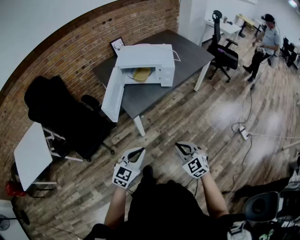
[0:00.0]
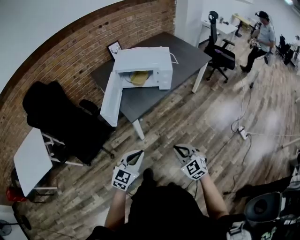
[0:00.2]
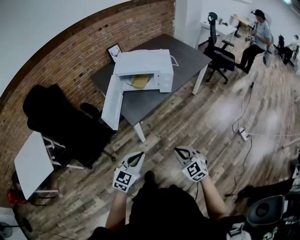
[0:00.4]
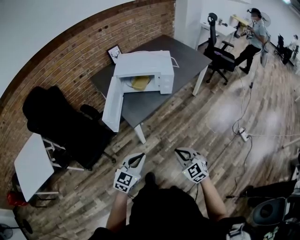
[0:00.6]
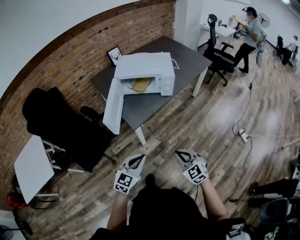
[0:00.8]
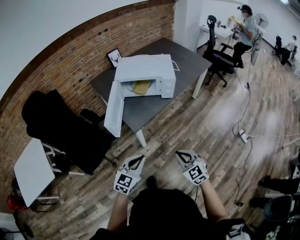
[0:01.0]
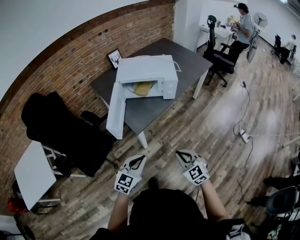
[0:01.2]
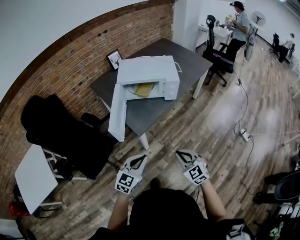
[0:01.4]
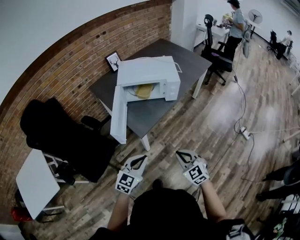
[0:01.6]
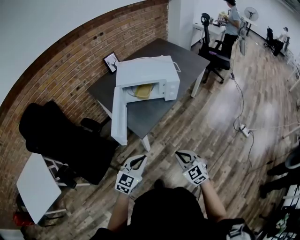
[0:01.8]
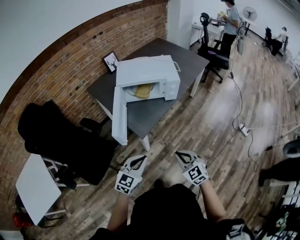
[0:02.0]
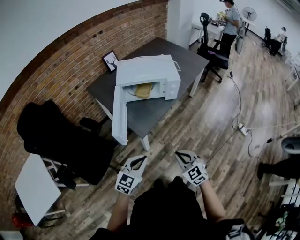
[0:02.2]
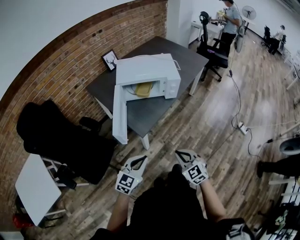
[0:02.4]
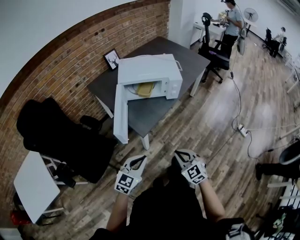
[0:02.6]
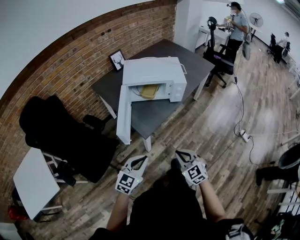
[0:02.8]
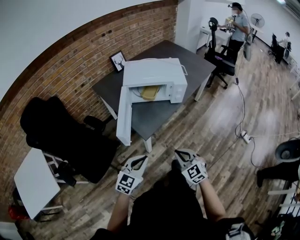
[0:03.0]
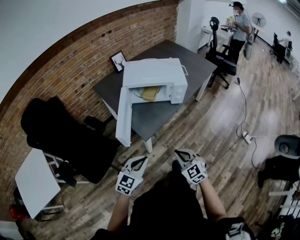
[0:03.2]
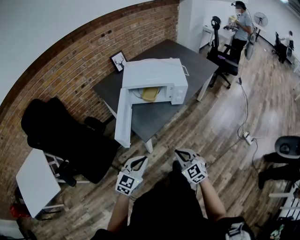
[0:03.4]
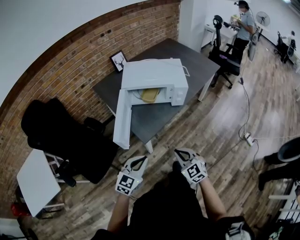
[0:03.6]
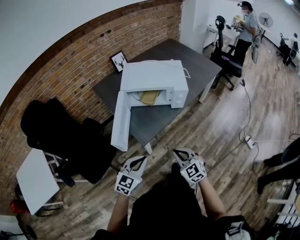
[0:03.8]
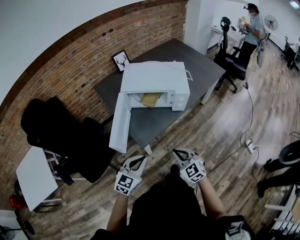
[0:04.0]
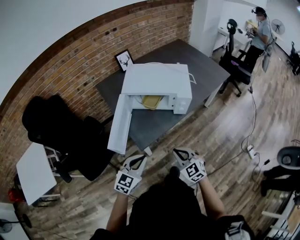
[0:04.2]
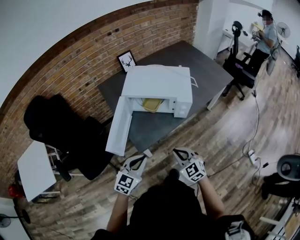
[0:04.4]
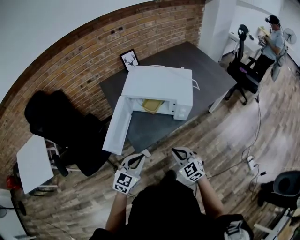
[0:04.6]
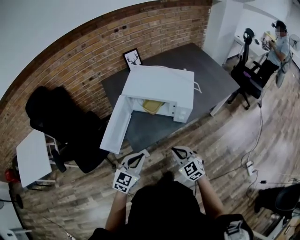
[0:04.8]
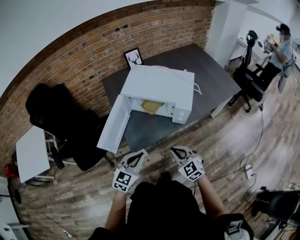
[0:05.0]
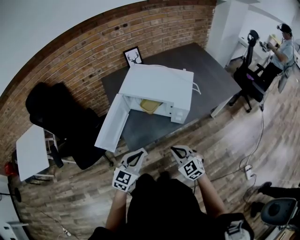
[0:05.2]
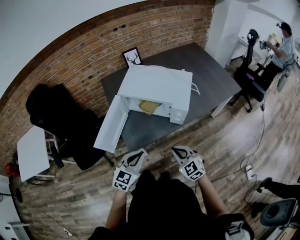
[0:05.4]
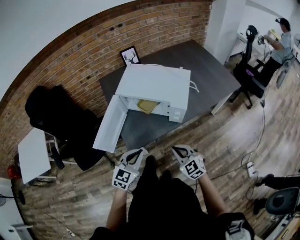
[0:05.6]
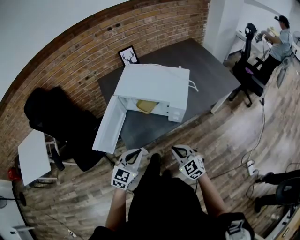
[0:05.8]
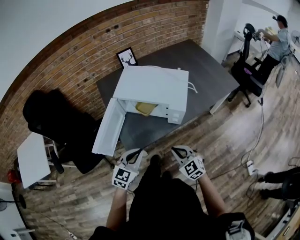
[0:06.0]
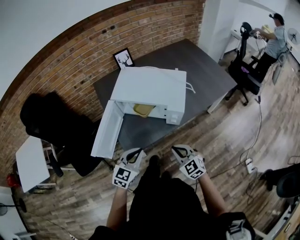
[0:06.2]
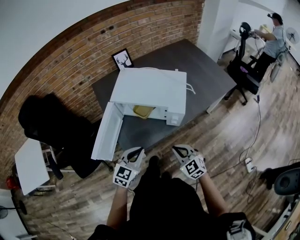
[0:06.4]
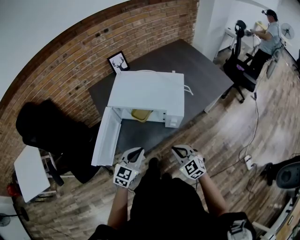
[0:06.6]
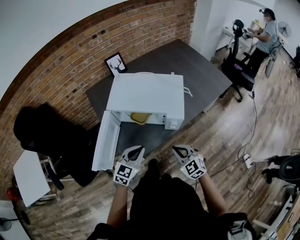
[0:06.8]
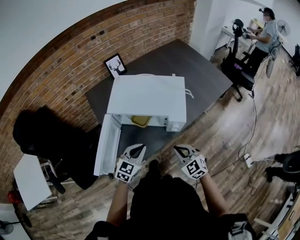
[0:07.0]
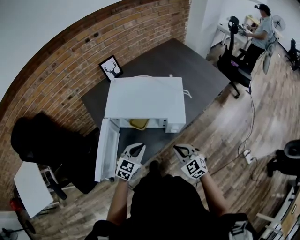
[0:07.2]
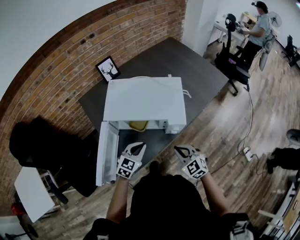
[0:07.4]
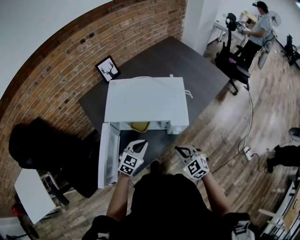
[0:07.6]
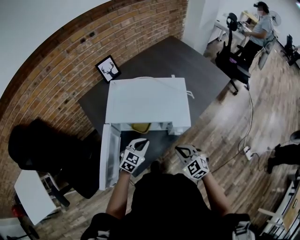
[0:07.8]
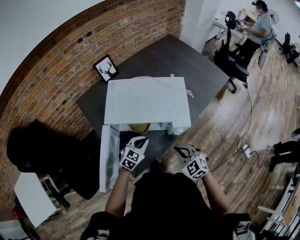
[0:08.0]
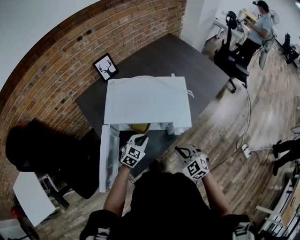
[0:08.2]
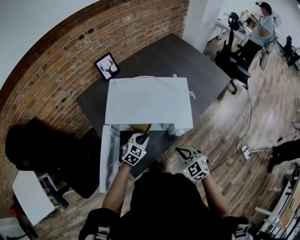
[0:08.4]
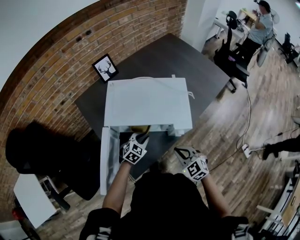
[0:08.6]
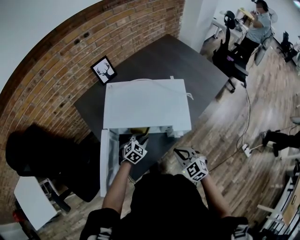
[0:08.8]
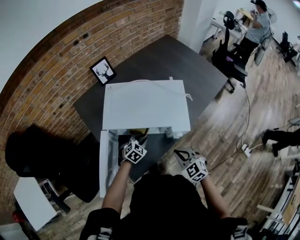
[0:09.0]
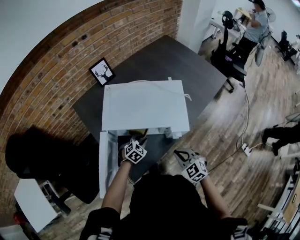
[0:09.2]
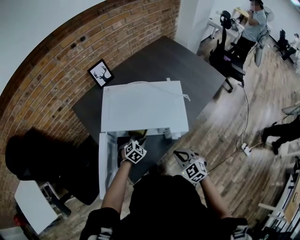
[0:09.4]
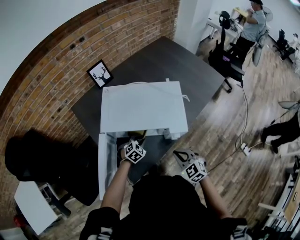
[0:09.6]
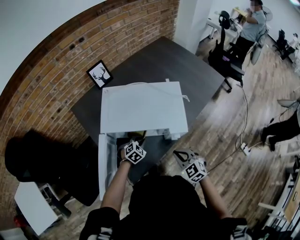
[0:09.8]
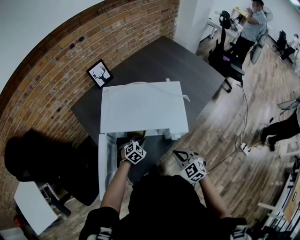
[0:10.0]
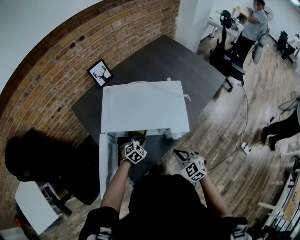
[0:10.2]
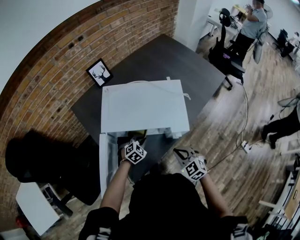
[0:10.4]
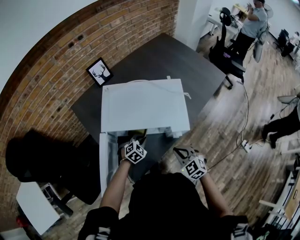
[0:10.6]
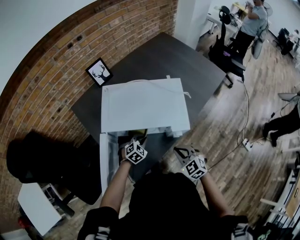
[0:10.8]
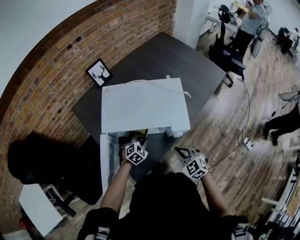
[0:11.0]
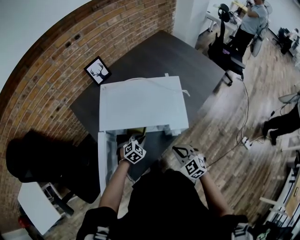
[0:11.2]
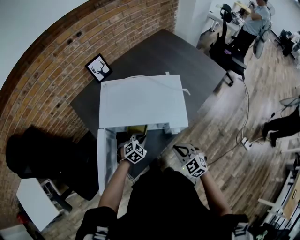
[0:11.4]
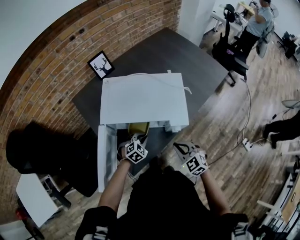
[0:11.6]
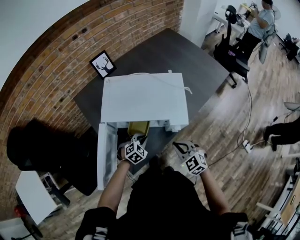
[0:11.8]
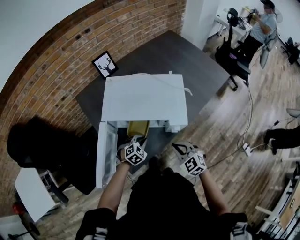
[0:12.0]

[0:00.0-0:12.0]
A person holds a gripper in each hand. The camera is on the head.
0:00.0 to 0:01.6: The grippers both shift to the left and forward by some 10 cm.
0:01.6 to 0:03.0: The right gripper changes place by roughly 5 cm.
0:03.0 to 0:04.4: The left gripper shifts some 15 cm forward and to the right; the right gripper heads forward, covering about 15 cm.
0:04.4 to 0:06.0: Both grippers travel together to the right and forward, about 10 cm.
0:06.0 to 0:07.6: The right gripper heads forward, covering approximately 10 cm. The left gripper moves forward and downward, roughly 20 cm.
0:07.6 to 0:09.0: The left gripper moves downward and forward, about 15 cm, and swivels roughly 20 degrees.
0:09.0 to 0:10.4: The grippers move only a little.
0:10.4 to 0:12.0: The left gripper heads backward, covering approximately 5 cm.

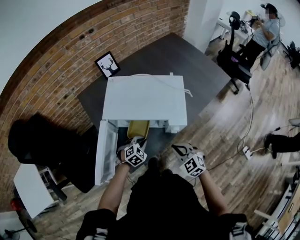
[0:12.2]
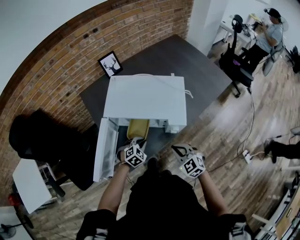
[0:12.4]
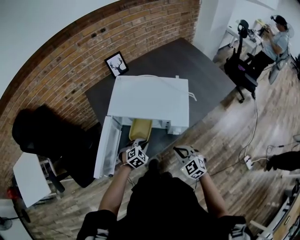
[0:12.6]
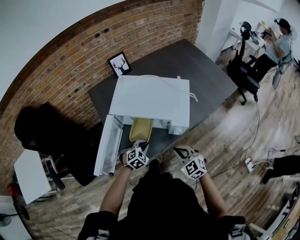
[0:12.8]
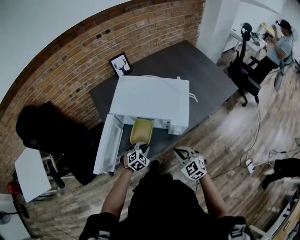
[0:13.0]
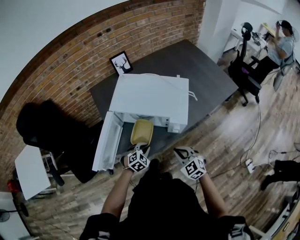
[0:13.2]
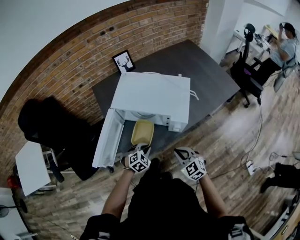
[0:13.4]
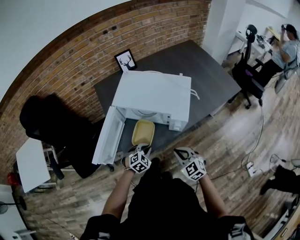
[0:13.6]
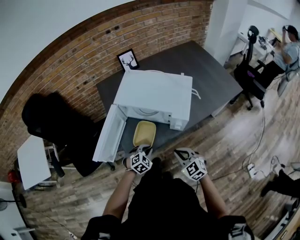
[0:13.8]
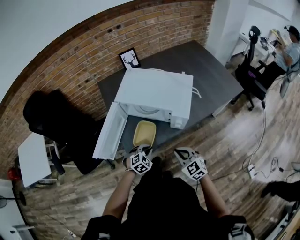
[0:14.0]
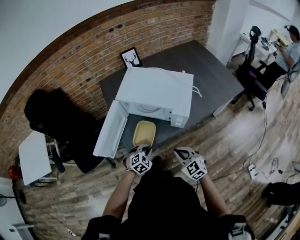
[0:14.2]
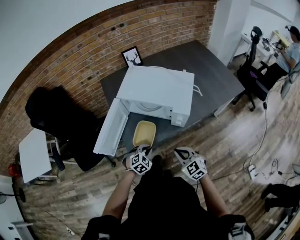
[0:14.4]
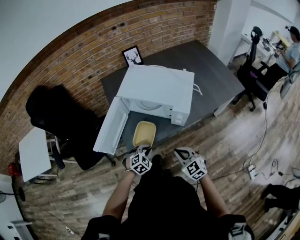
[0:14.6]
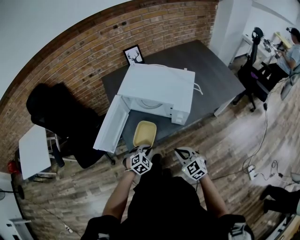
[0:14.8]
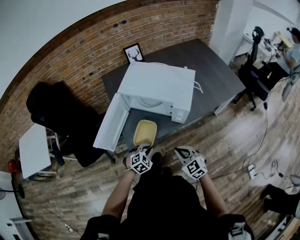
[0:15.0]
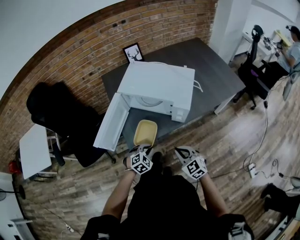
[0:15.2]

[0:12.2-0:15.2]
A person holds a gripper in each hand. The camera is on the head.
0:12.2 to 0:13.8: The left gripper shifts roughly 10 cm backward; the right gripper travels backward by roughly 5 cm.
0:13.8 to 0:15.2: The left gripper goes about 5 cm backward.

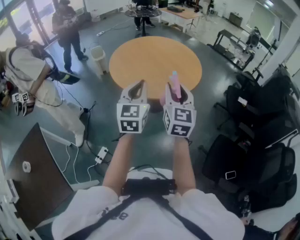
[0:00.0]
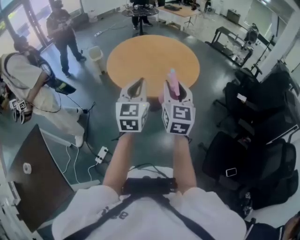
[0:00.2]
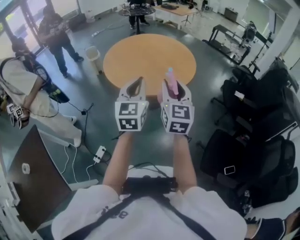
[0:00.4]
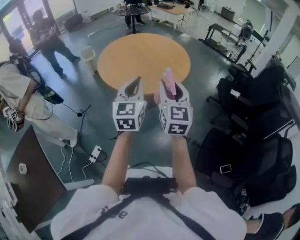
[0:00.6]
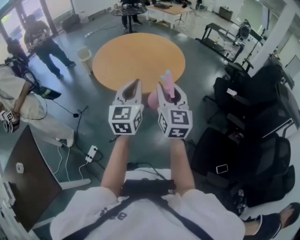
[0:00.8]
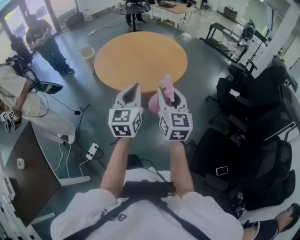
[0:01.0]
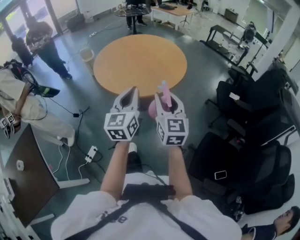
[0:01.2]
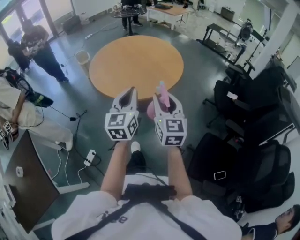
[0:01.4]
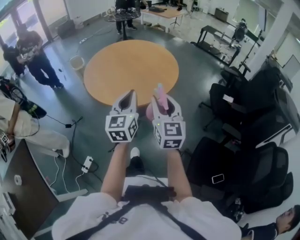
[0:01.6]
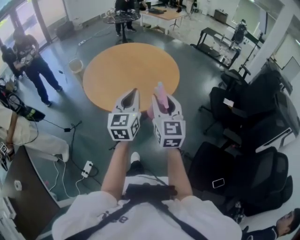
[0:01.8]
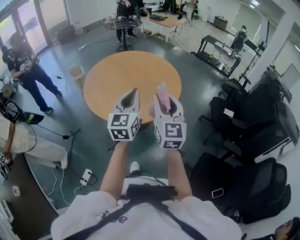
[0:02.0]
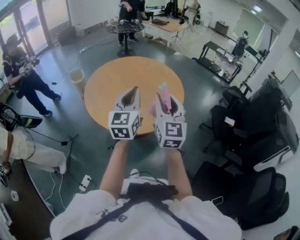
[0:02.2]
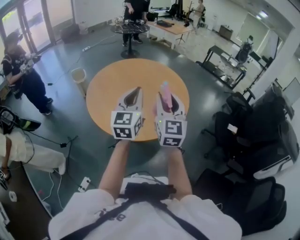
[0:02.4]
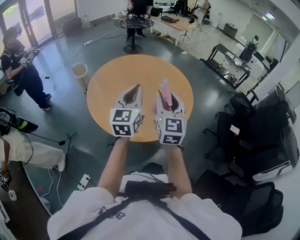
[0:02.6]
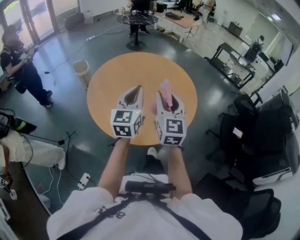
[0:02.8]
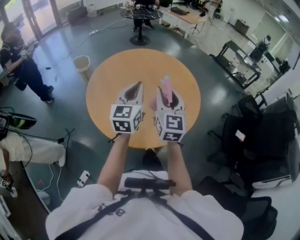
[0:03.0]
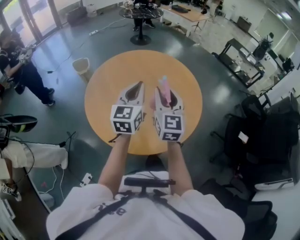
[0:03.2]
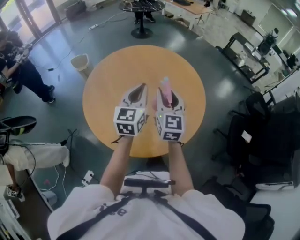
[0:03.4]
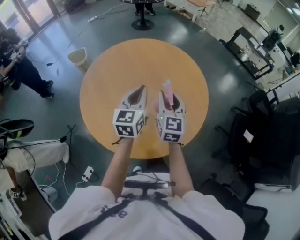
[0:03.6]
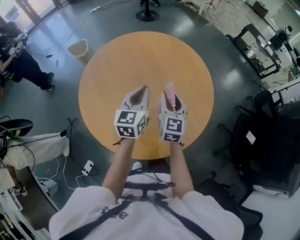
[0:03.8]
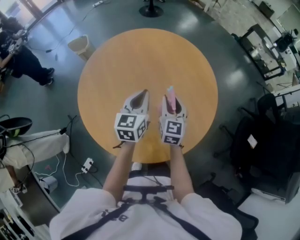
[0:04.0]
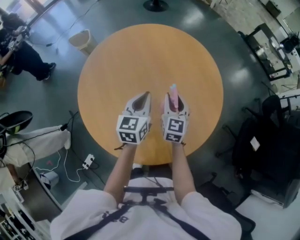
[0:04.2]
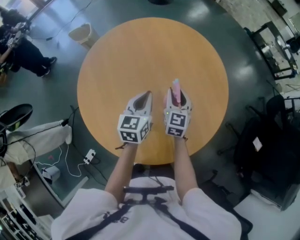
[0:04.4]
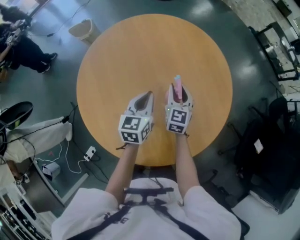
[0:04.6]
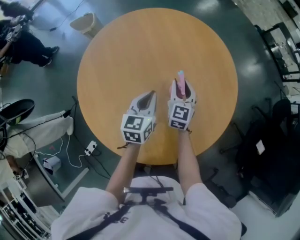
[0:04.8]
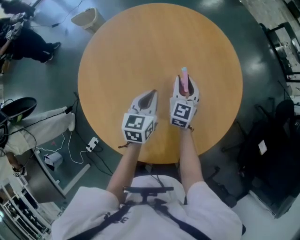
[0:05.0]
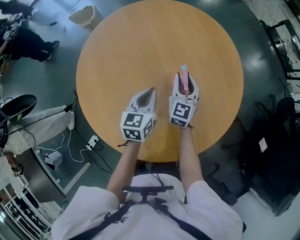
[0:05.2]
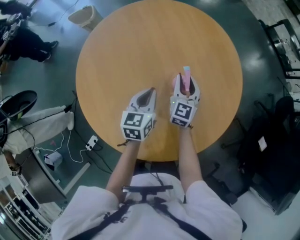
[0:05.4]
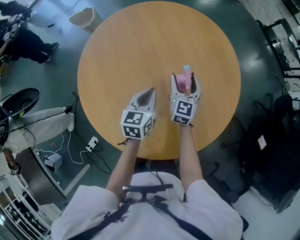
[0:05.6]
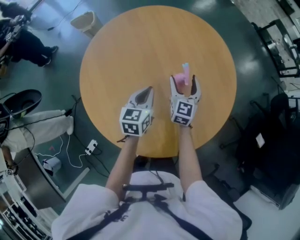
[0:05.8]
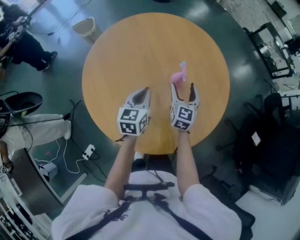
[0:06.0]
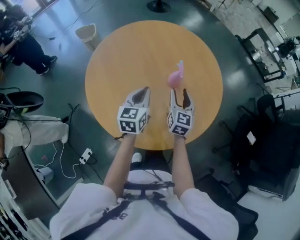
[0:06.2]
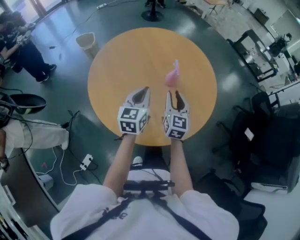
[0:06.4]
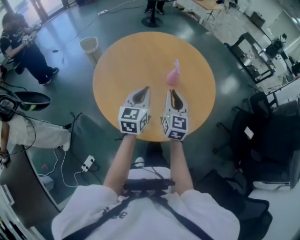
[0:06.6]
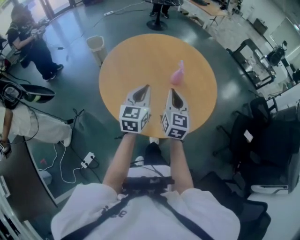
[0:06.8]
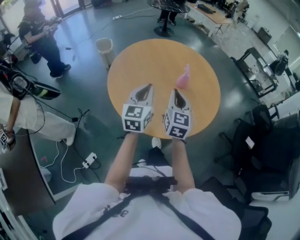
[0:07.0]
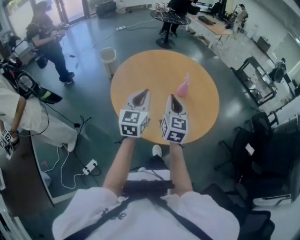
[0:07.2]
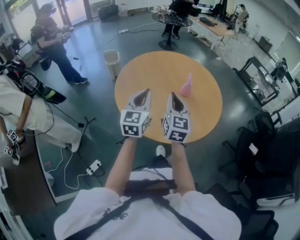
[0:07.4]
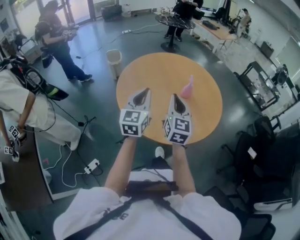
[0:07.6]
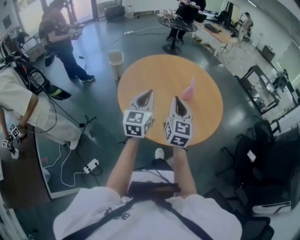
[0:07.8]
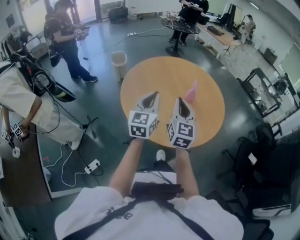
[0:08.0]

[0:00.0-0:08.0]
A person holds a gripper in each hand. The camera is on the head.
0:00.0 to 0:01.6: The grippers both shift to the right by some 15 cm.
0:01.6 to 0:03.2: The two grippers go roughly 40 cm forward.
0:03.2 to 0:04.8: Both grippers move downward and forward, roughly 30 cm. The left gripper swivels approximately 30 degrees.
0:04.8 to 0:06.4: The grippers both shift backward and upward by some 20 cm. The right gripper opens, then closes once more.
0:06.4 to 0:08.0: Both grippers travel together backward, upward and to the left, some 20 cm. The right gripper closes.

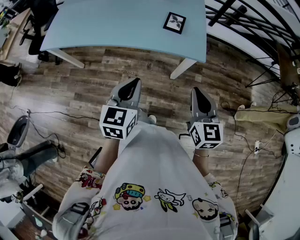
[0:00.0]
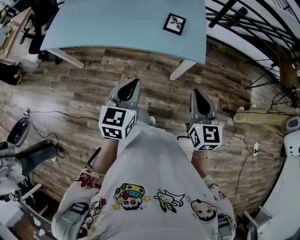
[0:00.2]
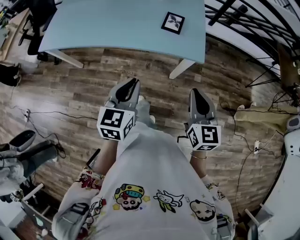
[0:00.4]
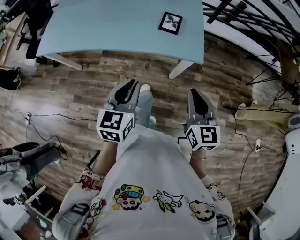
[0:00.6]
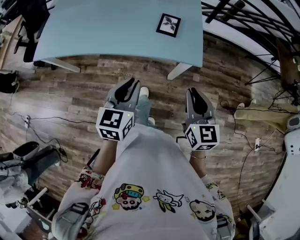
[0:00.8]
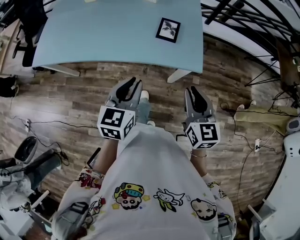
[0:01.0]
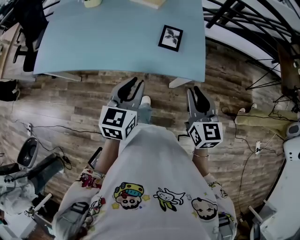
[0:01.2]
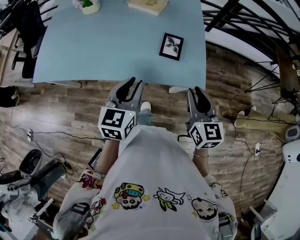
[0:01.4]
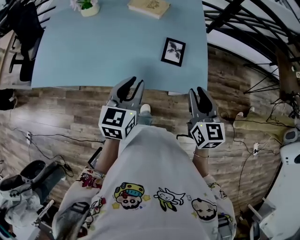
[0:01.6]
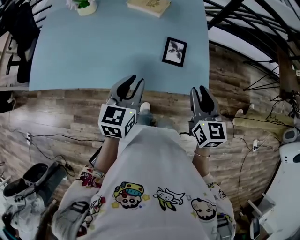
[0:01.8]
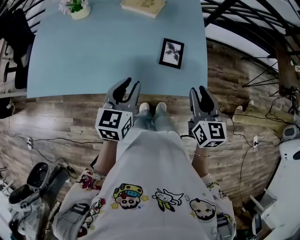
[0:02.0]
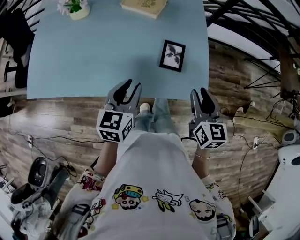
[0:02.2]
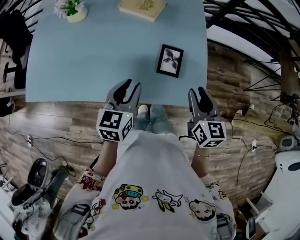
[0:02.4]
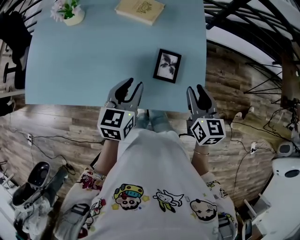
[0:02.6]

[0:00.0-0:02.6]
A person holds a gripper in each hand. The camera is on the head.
0:00.0 to 0:01.2: The grippers both shift forward by approximately 15 cm.
0:01.2 to 0:02.6: Both grippers travel together forward, some 20 cm.